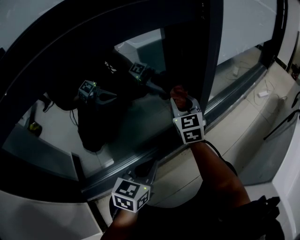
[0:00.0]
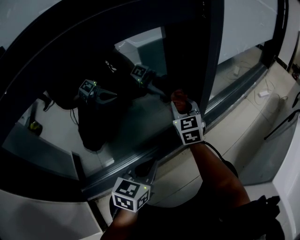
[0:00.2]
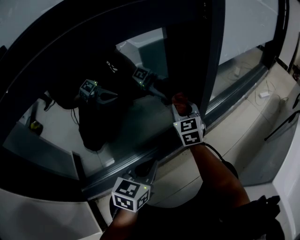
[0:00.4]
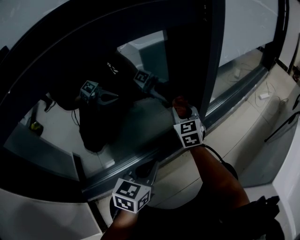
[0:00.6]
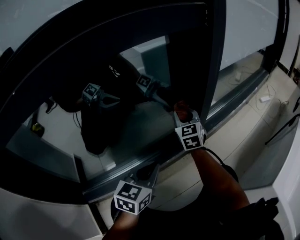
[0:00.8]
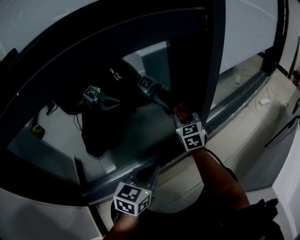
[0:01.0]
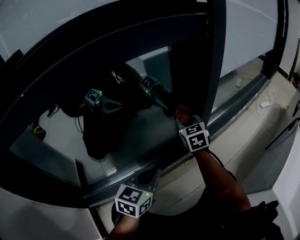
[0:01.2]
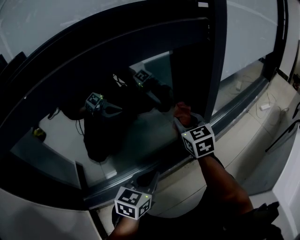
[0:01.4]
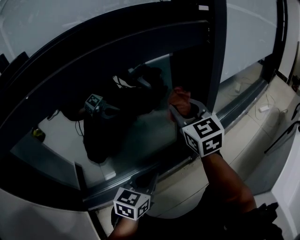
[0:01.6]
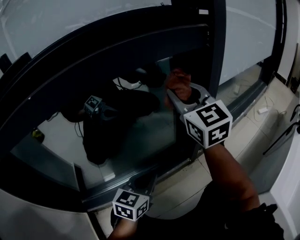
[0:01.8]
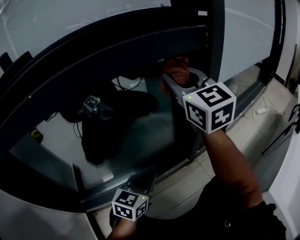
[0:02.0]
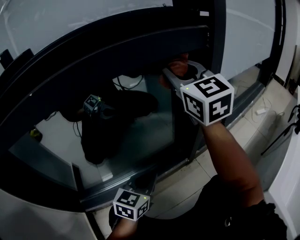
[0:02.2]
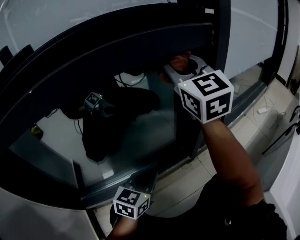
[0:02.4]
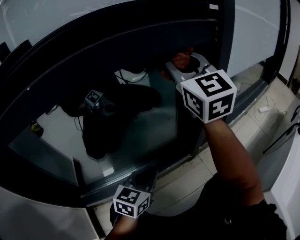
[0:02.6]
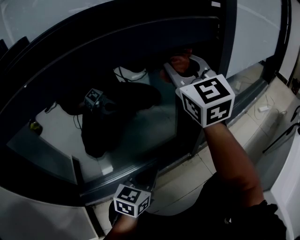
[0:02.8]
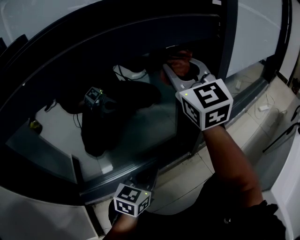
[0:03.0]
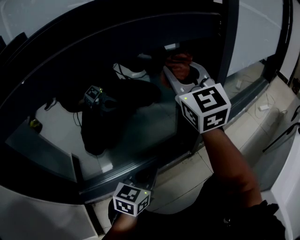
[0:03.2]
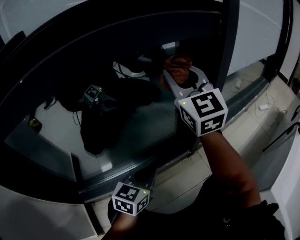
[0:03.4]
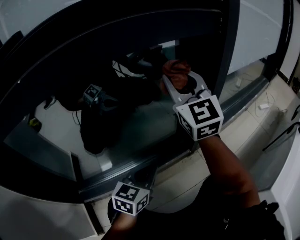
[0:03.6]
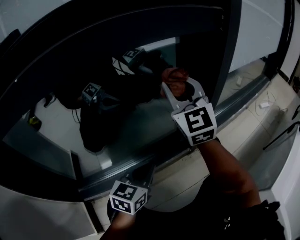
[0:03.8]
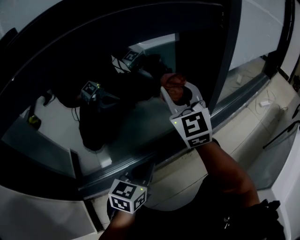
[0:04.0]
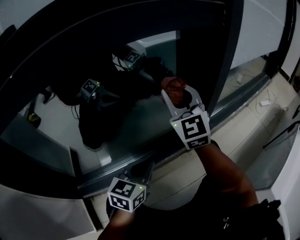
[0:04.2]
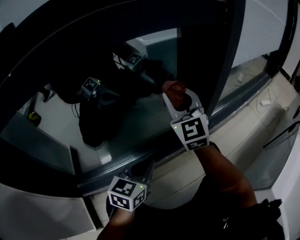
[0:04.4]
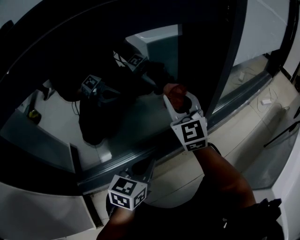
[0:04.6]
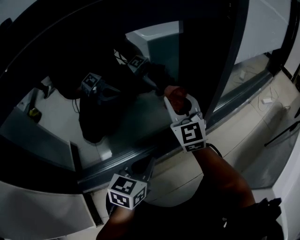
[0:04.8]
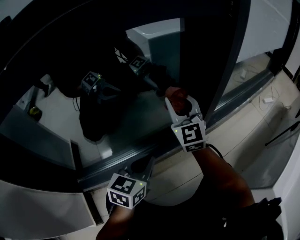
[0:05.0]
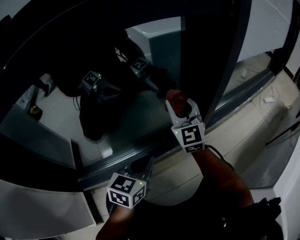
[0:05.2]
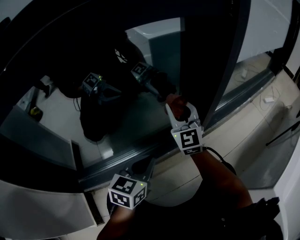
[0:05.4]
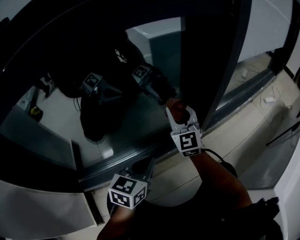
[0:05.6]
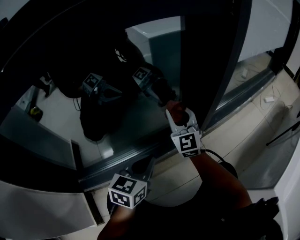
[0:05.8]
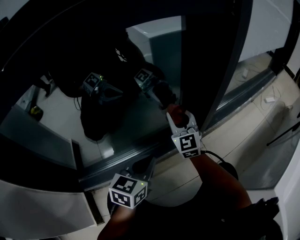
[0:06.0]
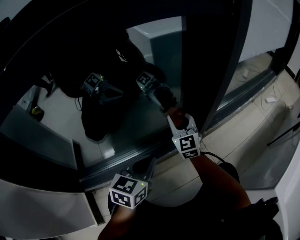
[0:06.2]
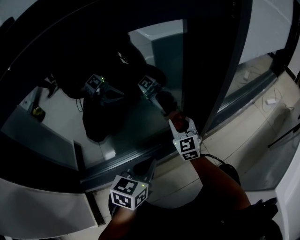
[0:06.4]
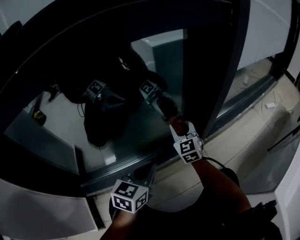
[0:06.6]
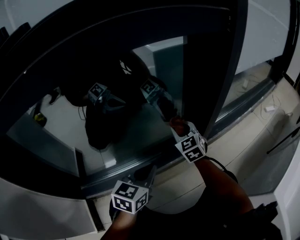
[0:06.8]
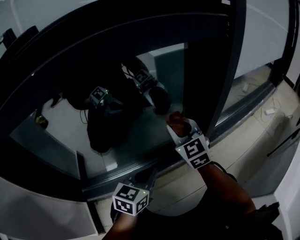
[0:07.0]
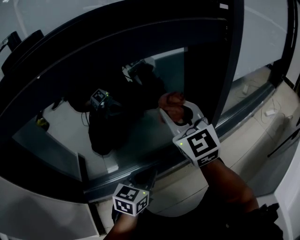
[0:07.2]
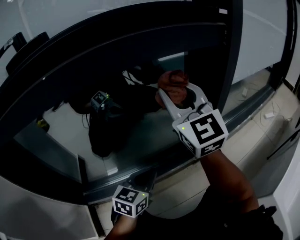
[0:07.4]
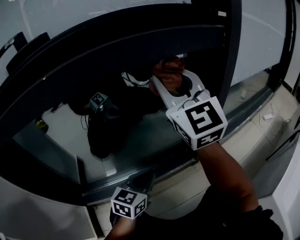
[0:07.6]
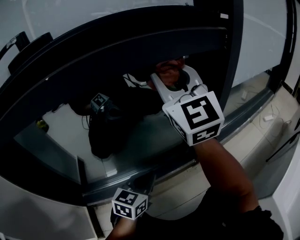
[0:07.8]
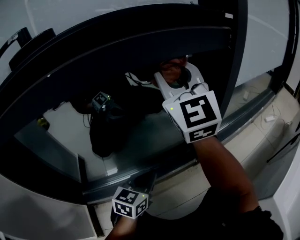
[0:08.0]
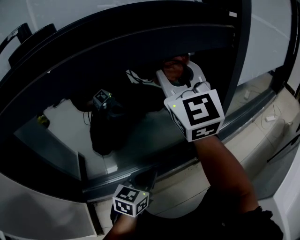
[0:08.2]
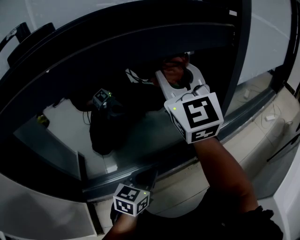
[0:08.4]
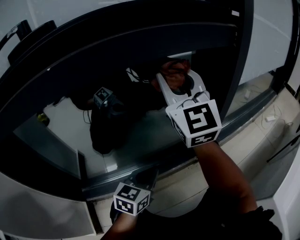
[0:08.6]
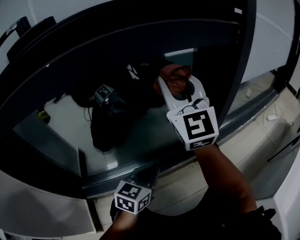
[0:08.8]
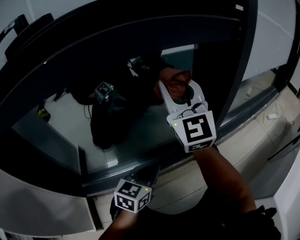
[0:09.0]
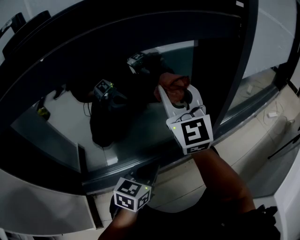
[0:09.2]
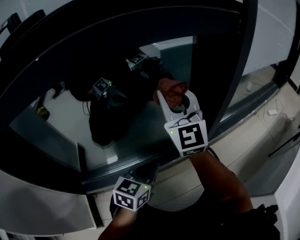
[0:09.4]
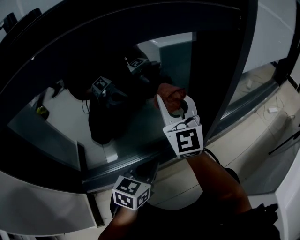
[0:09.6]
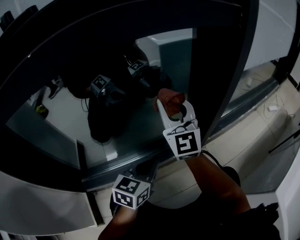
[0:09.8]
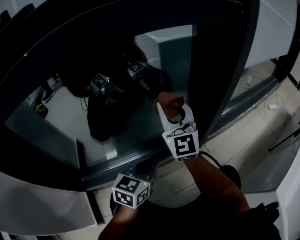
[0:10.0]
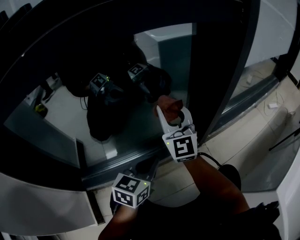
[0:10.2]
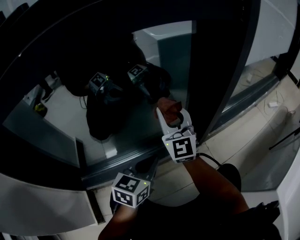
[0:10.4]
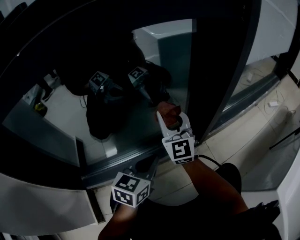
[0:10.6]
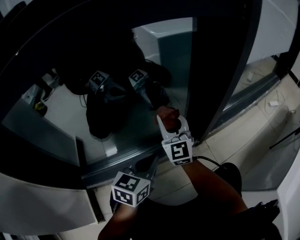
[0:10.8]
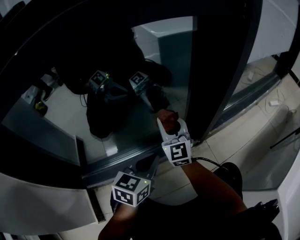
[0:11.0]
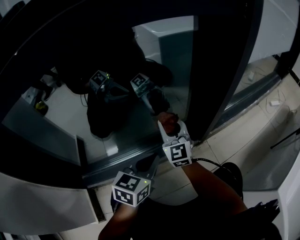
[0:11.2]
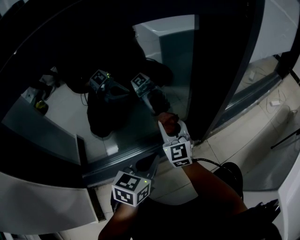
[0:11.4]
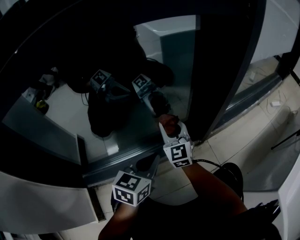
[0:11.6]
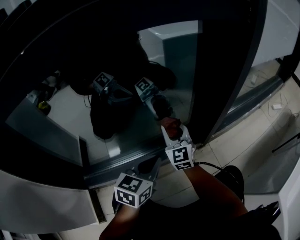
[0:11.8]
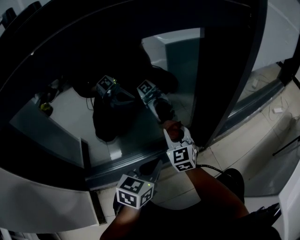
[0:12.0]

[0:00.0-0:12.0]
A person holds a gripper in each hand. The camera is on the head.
0:00.0 to 0:01.6: The right gripper moves upward, about 10 cm.
0:01.6 to 0:03.0: The right gripper travels upward by approximately 15 cm.
0:03.0 to 0:04.4: The right gripper heads downward, covering approximately 15 cm.
0:04.4 to 0:06.0: The right gripper is displaced downward by some 15 cm.
0:06.0 to 0:07.6: The right gripper moves upward, roughly 35 cm.
0:07.6 to 0:09.0: The right gripper goes some 5 cm downward.
0:09.0 to 0:10.4: The right gripper heads downward, covering about 20 cm.
0:10.4 to 0:12.0: The right gripper travels downward by about 15 cm, and changes its angle by approximately 20 degrees.

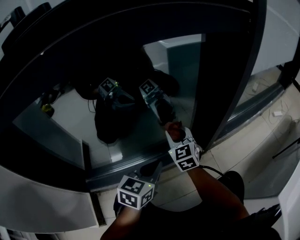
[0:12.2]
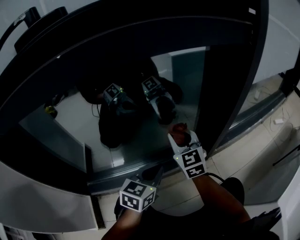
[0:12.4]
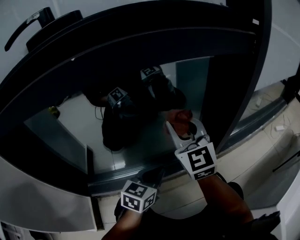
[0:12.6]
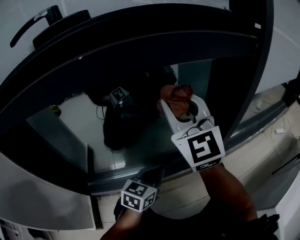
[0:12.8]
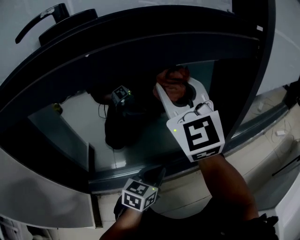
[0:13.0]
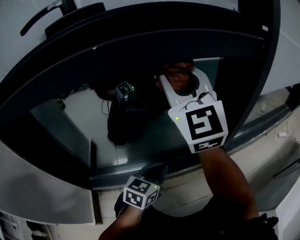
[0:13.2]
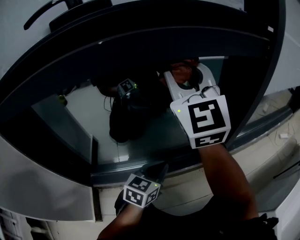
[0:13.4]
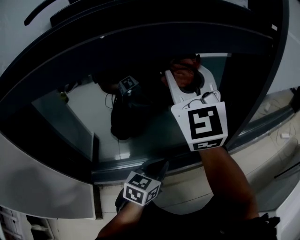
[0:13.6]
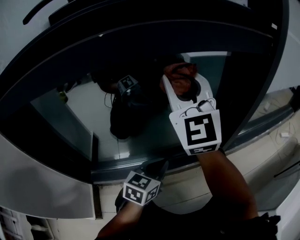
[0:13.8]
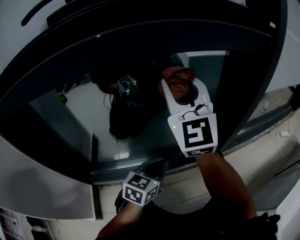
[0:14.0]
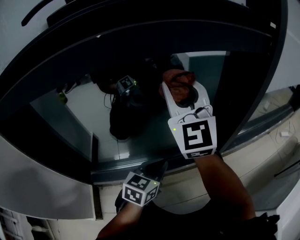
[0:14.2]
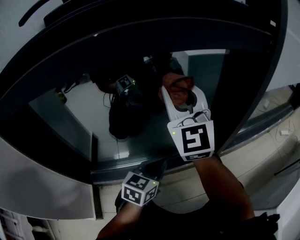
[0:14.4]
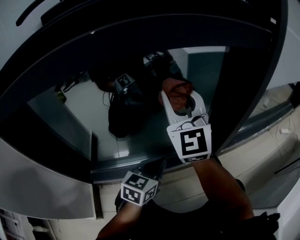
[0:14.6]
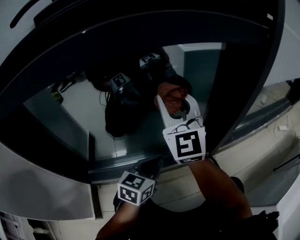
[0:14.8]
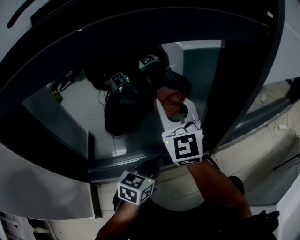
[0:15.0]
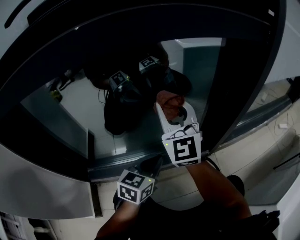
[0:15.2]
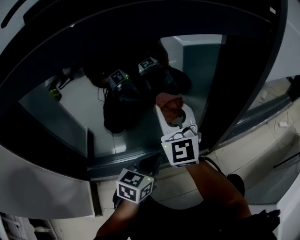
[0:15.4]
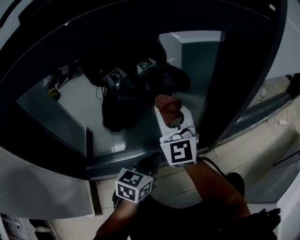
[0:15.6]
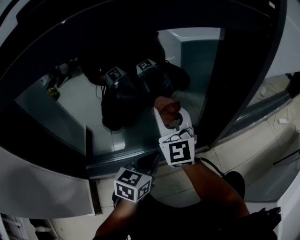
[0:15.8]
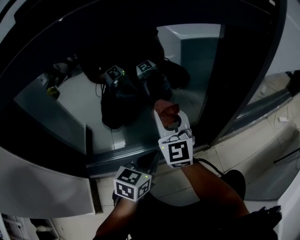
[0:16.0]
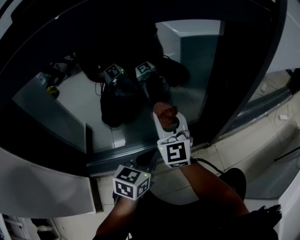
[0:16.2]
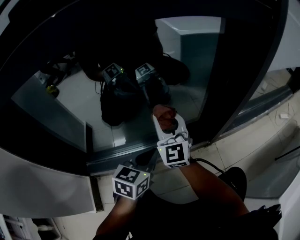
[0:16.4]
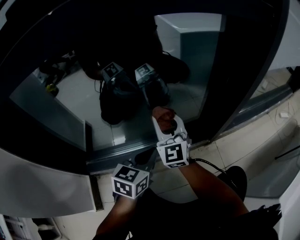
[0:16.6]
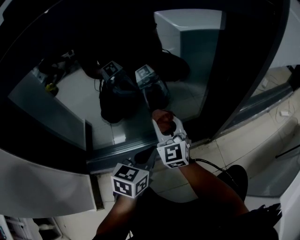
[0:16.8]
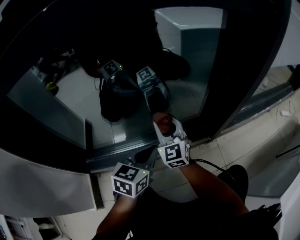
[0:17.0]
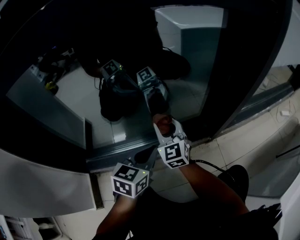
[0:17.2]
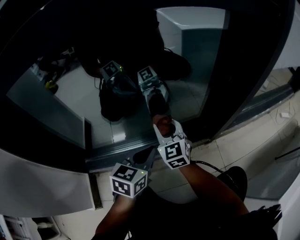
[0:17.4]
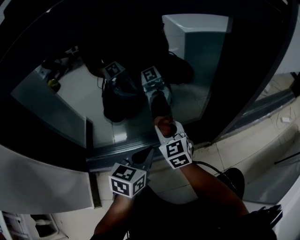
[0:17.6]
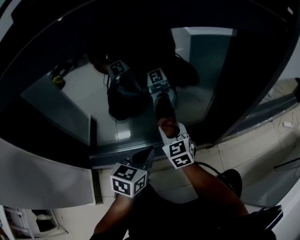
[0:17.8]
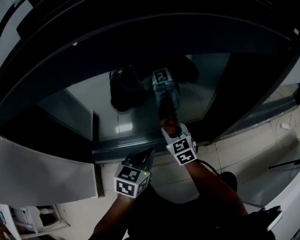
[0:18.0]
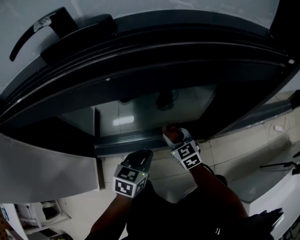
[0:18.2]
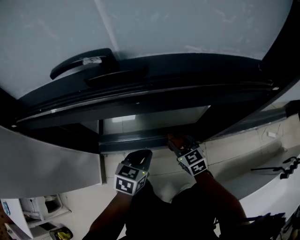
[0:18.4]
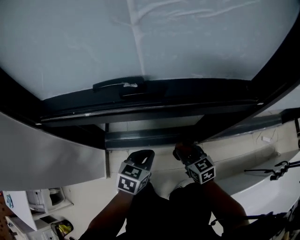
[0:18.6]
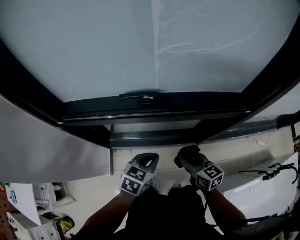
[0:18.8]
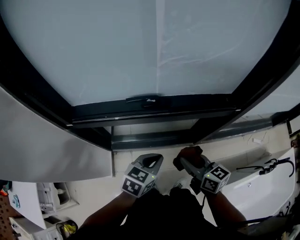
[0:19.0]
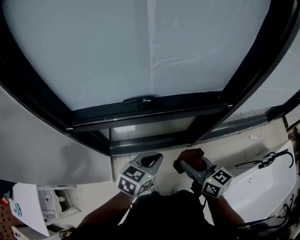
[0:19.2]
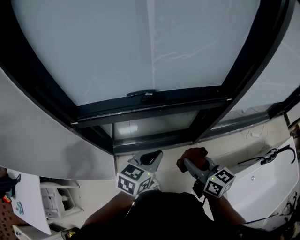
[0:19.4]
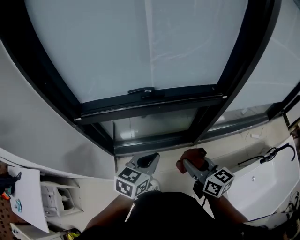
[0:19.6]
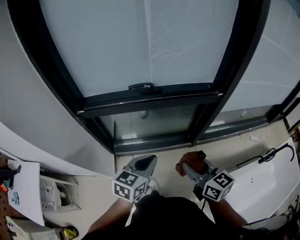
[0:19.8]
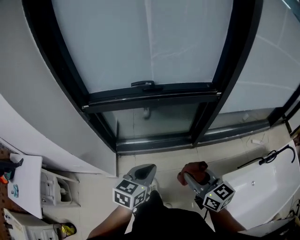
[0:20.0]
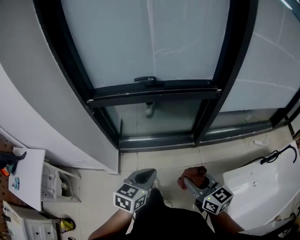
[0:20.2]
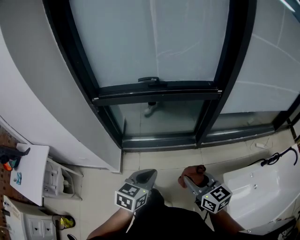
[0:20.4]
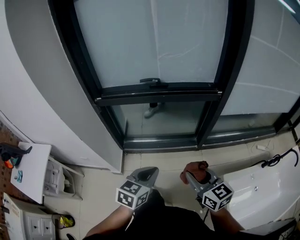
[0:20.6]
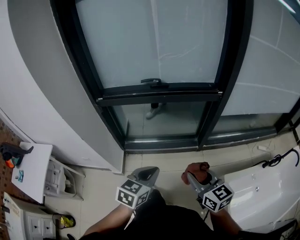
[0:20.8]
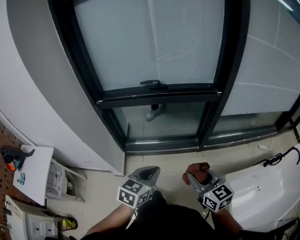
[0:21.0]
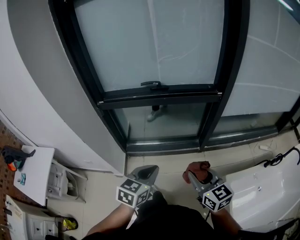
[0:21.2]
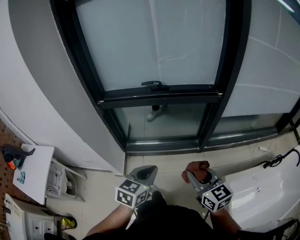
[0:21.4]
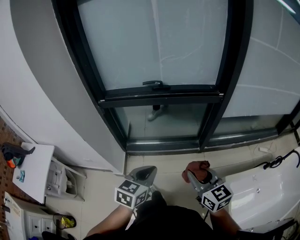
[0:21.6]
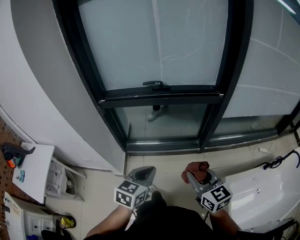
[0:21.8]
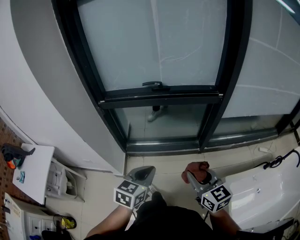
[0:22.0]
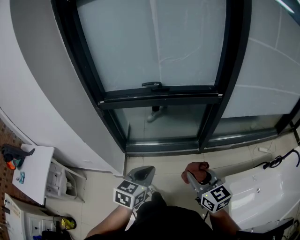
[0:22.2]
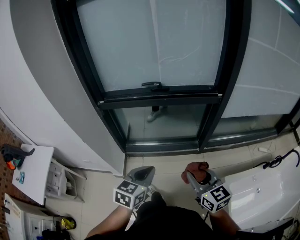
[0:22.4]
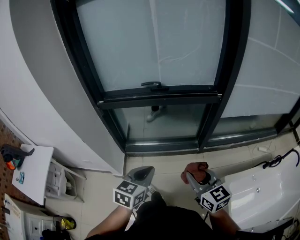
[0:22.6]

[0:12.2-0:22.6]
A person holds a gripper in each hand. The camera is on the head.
0:12.2 to 0:13.6: The right gripper goes about 35 cm upward, and points its fingers roughly 40 degrees further upward.
0:13.6 to 0:15.2: The right gripper moves downward, some 15 cm.
0:15.2 to 0:16.6: The right gripper heads downward, covering about 15 cm.
0:16.6 to 0:18.2: The right gripper goes approximately 5 cm backward, reaches approximately 10 cm downward, then returns, and angles its fingers downward, by approximately 30 degrees; the left gripper goes about 10 cm upward.
0:18.2 to 0:19.6: Both grippers travel together upward and backward, roughly 50 cm. The right gripper swivels roughly 30 degrees.
0:19.6 to 0:21.2: The two grippers go approximately 20 cm backward.
0:21.2 to 0:22.6: The grippers make only small movements.

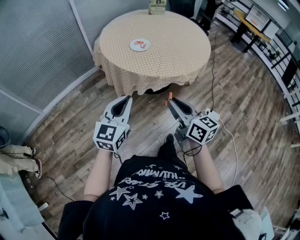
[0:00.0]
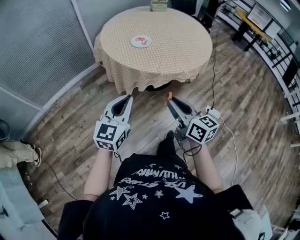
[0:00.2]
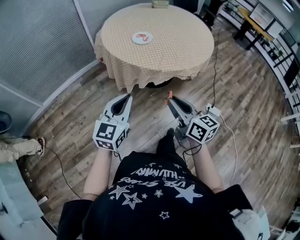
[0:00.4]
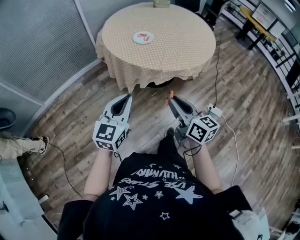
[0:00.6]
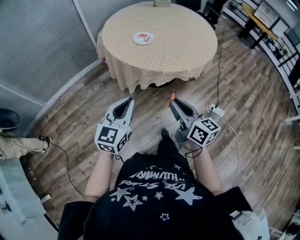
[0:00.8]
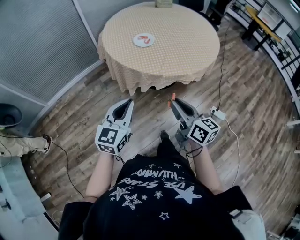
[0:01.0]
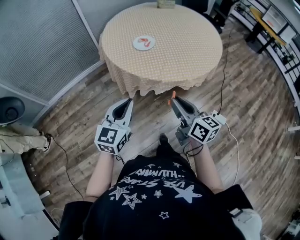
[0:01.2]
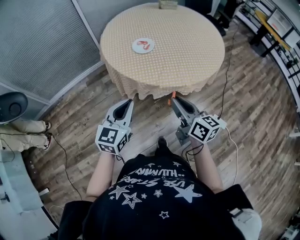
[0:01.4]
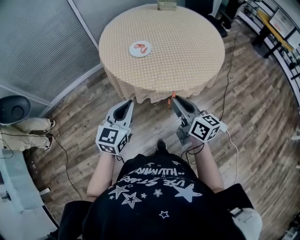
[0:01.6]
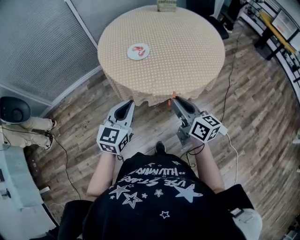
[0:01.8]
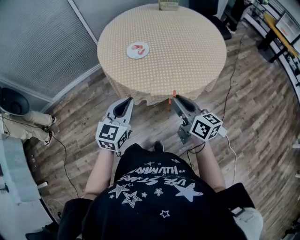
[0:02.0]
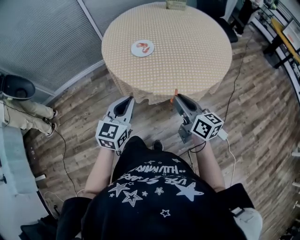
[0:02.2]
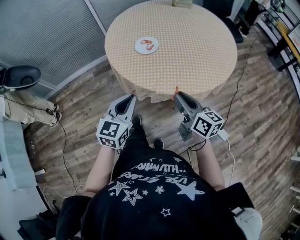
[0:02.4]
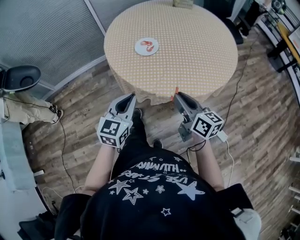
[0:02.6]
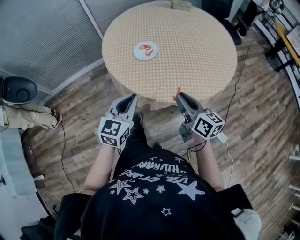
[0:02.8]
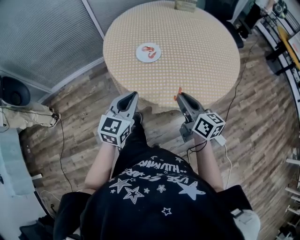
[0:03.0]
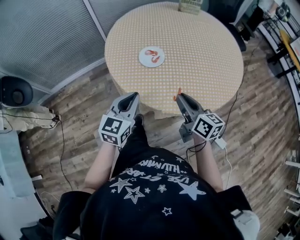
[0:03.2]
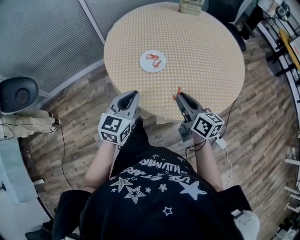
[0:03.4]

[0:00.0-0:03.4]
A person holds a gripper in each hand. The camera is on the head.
0:00.0 to 0:01.6: The grippers both shift forward and to the right by roughly 15 cm.
0:01.6 to 0:03.4: The grippers both shift forward by approximately 20 cm.
